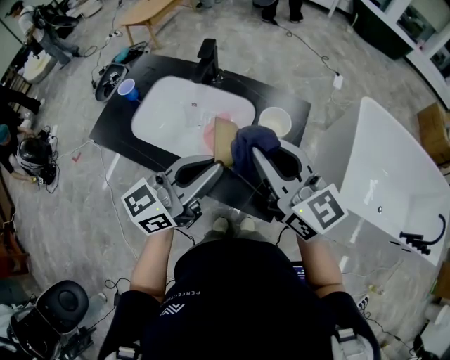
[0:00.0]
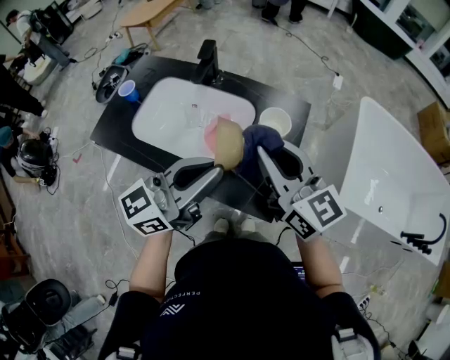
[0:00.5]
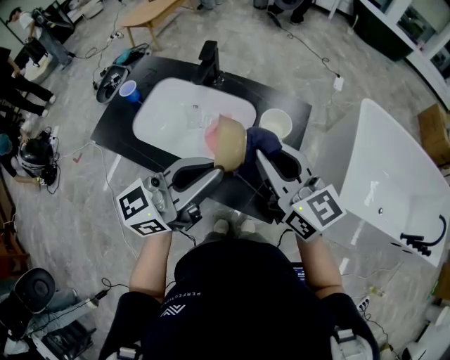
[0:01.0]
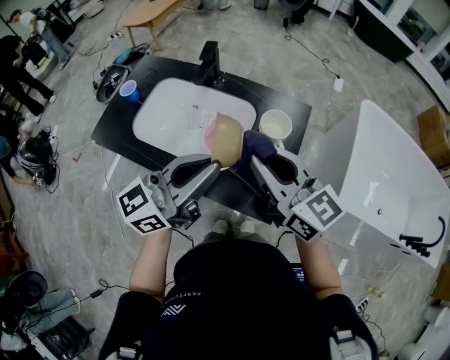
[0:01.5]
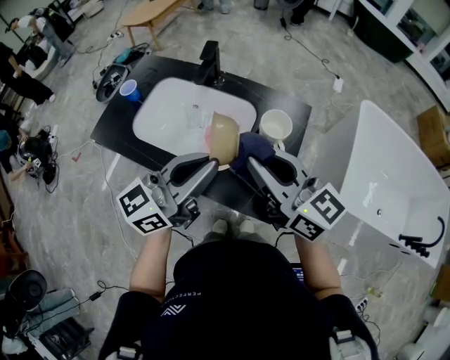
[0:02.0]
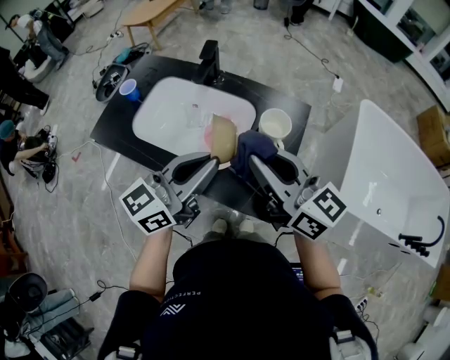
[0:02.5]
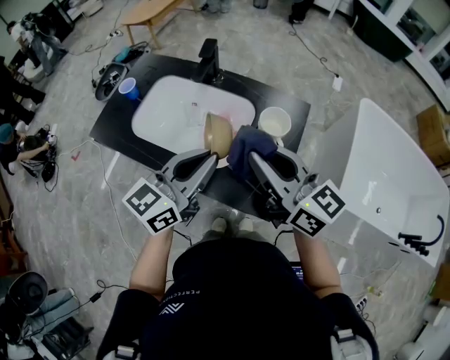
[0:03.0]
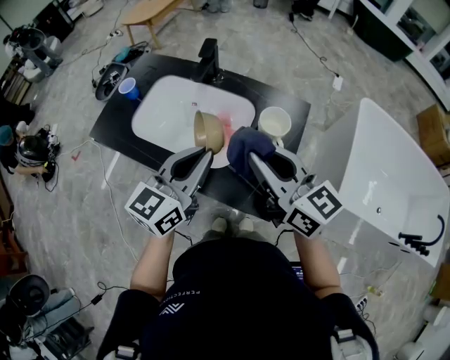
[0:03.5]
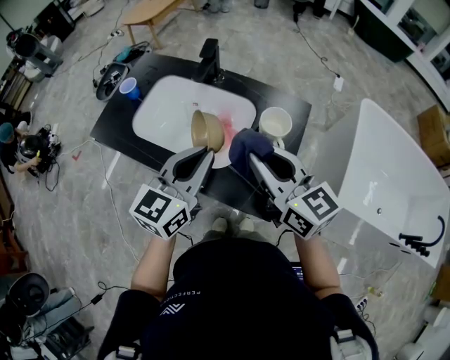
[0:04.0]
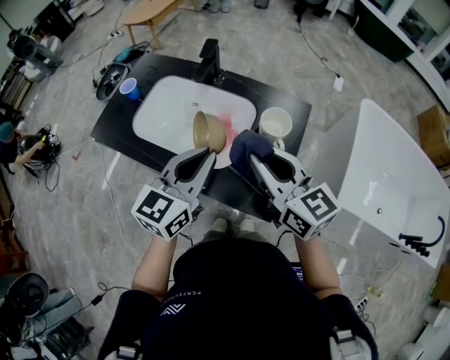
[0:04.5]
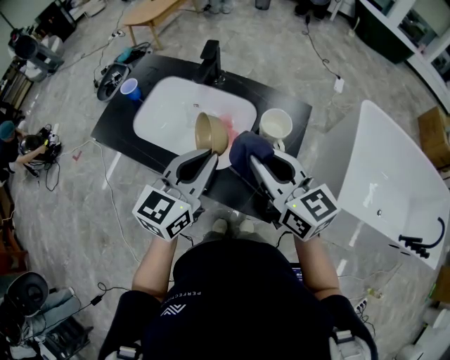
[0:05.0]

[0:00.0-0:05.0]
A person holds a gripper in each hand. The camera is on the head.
0:00.0 to 0:02.5: The grippers stay close to where they were, moving slightly.
0:02.5 to 0:05.0: The left gripper rotates some 20 degrees.

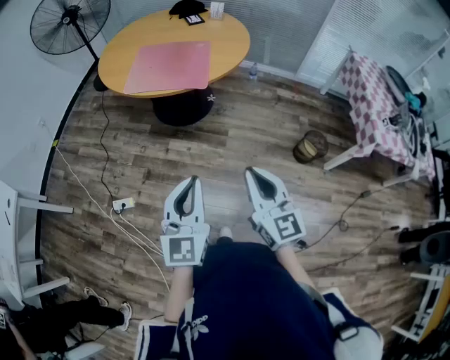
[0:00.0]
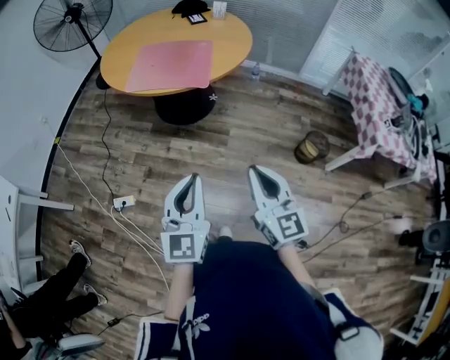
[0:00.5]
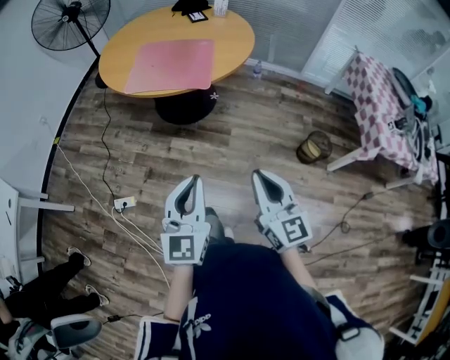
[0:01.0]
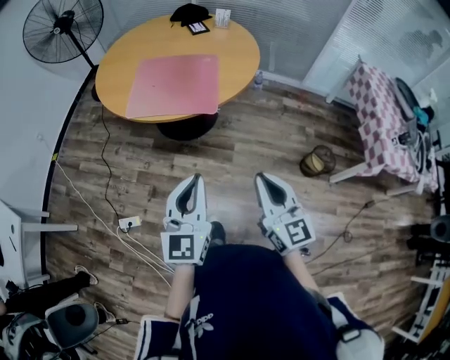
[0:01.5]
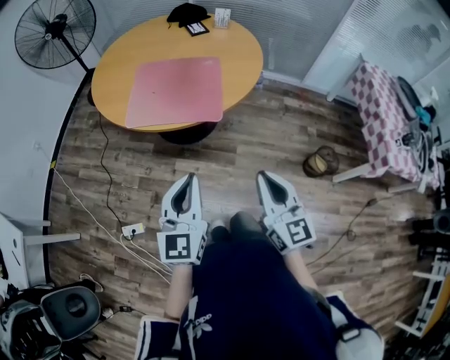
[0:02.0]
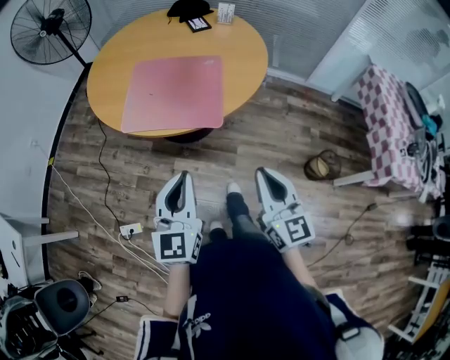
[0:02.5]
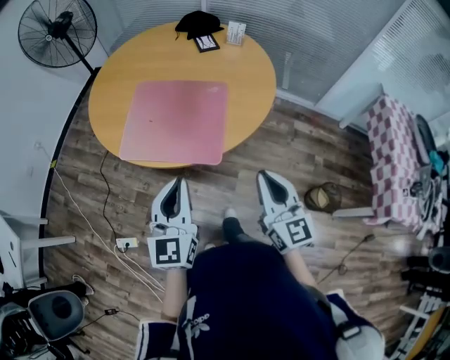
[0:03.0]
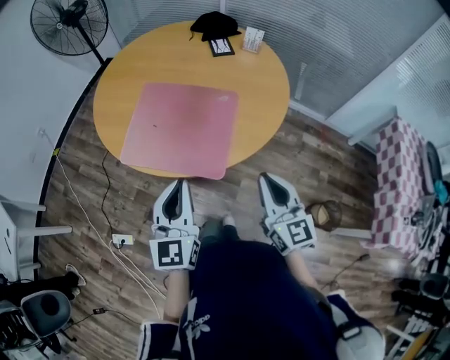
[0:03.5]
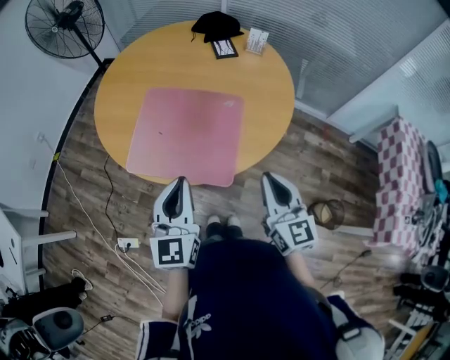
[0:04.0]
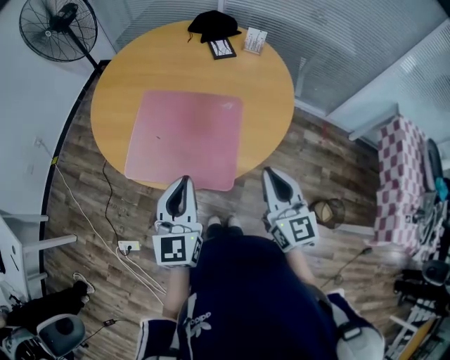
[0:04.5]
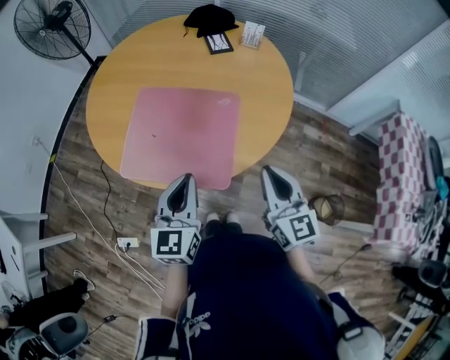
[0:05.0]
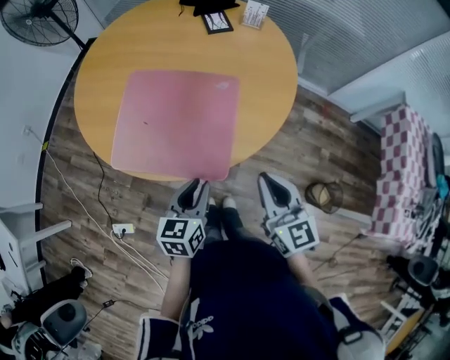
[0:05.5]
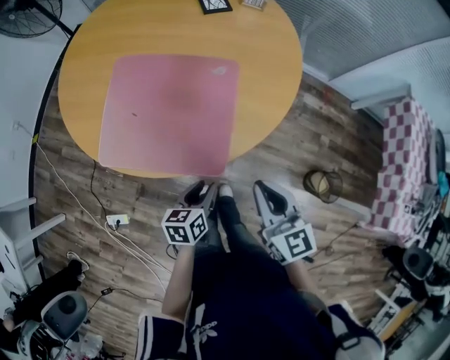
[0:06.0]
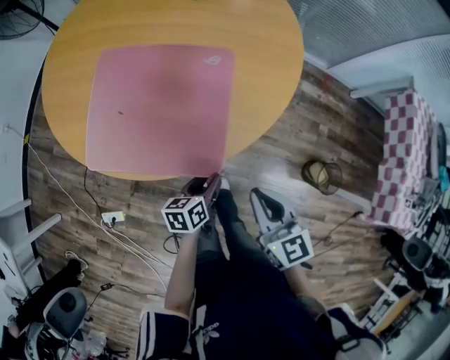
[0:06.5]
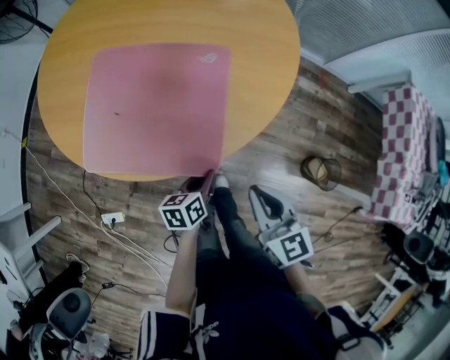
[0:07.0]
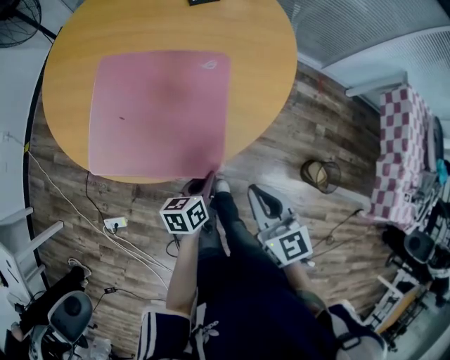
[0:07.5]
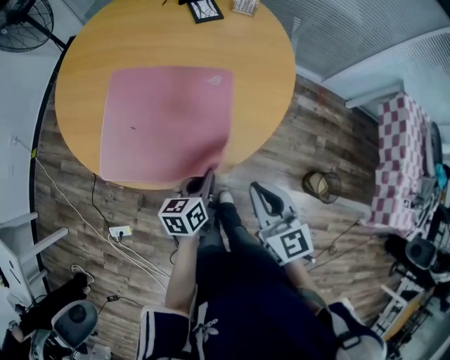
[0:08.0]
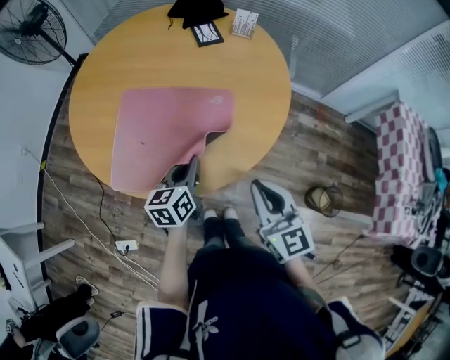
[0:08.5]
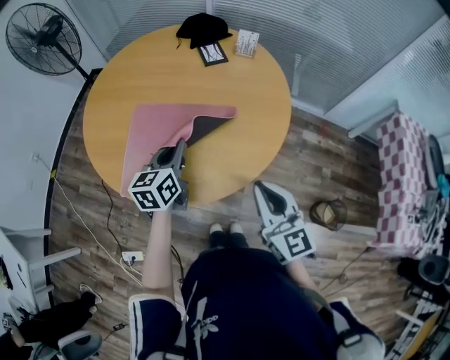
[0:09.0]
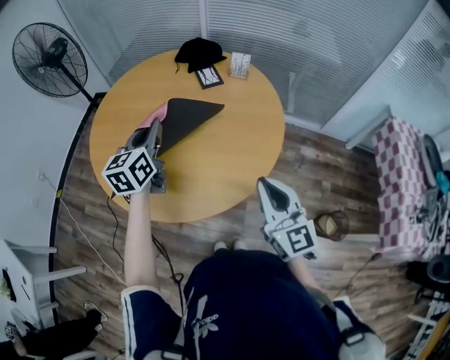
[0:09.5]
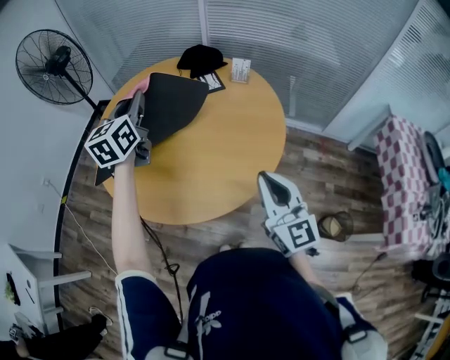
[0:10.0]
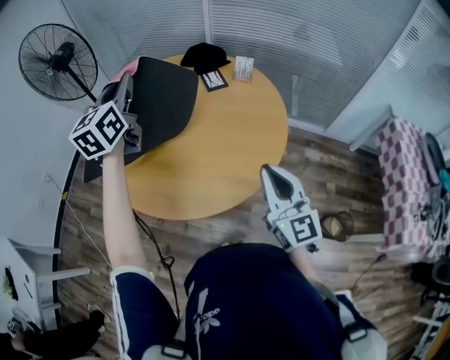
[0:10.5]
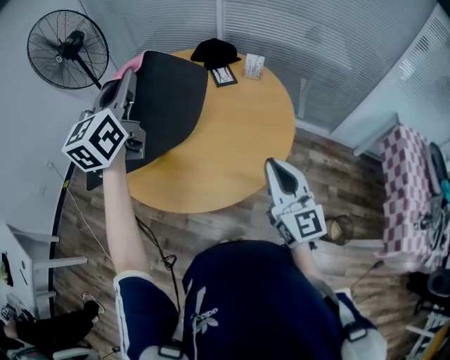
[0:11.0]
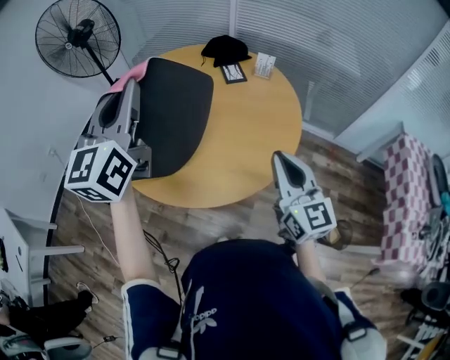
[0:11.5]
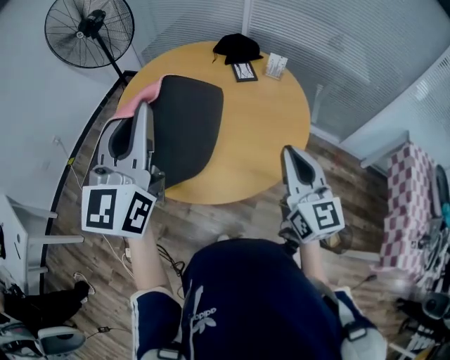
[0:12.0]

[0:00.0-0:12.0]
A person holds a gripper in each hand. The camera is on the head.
0:00.0 to 0:02.0: The two grippers go some 20 cm forward.
0:02.0 to 0:04.0: Both grippers travel together forward, approximately 25 cm.
0:04.0 to 0:06.0: The left gripper shifts about 25 cm downward, tips its fingers downward by about 30 degrees, and opens up, while the right gripper heads downward, covering about 10 cm.
0:06.0 to 0:08.0: The left gripper goes about 5 cm forward, and closes up.
0:08.0 to 0:10.0: The left gripper is displaced upward, forward and to the left by approximately 50 cm, and turns by some 40 degrees; the right gripper goes some 15 cm upward and forward, and rotates roughly 20 degrees.
0:10.0 to 0:12.0: The left gripper moves backward and upward, roughly 25 cm, and rotates approximately 20 degrees.

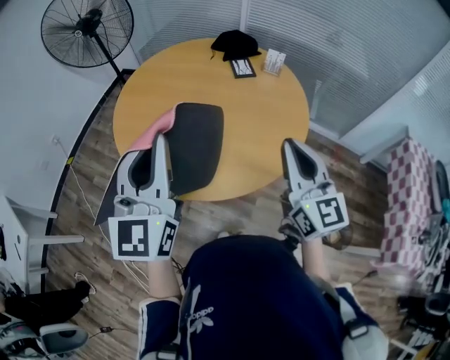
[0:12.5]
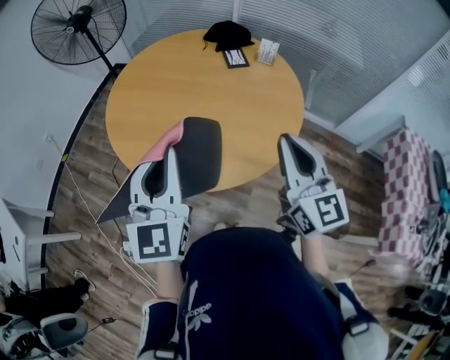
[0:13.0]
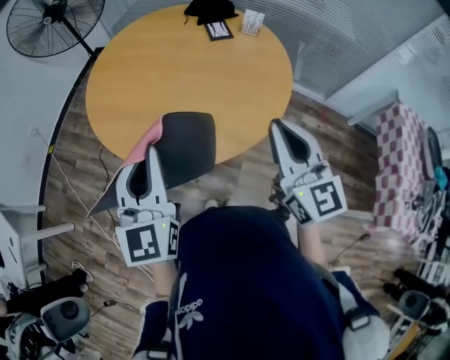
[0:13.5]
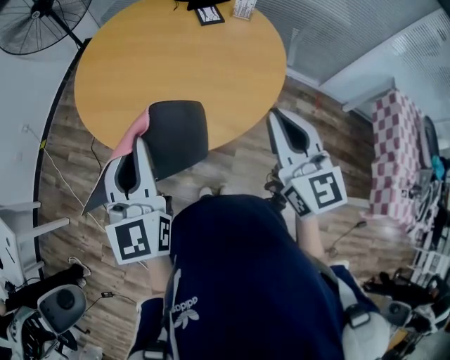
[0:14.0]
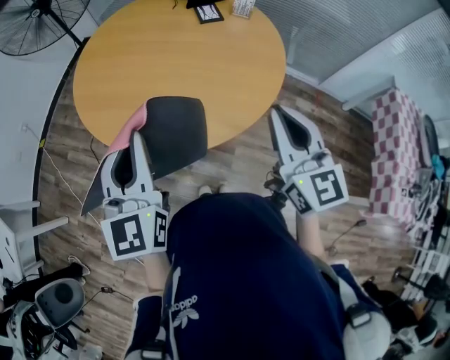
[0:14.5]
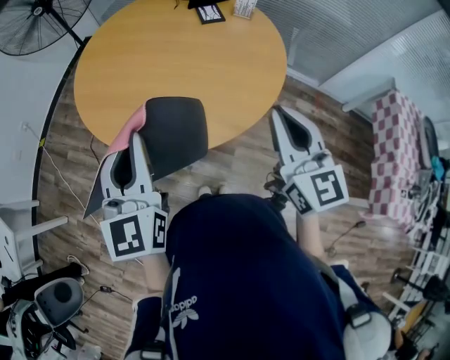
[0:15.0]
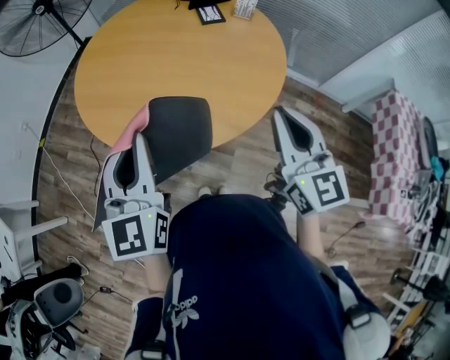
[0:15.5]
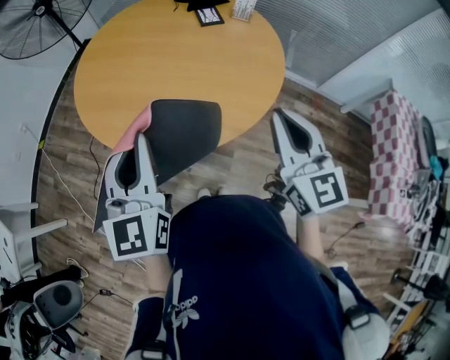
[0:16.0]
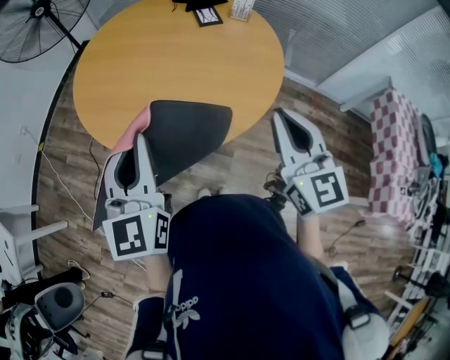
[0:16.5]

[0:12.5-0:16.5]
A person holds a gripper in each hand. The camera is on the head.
0:12.5 to 0:14.5: The left gripper shifts some 10 cm downward and backward, while the right gripper moves backward, approximately 5 cm.
0:14.5 to 0:16.5: Both grippers stay put.

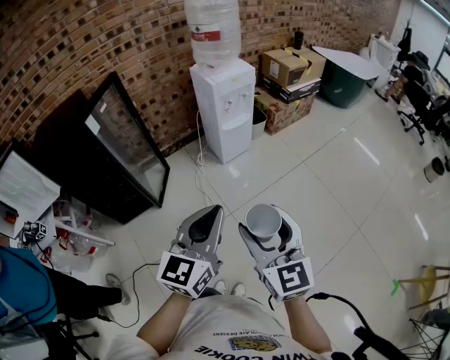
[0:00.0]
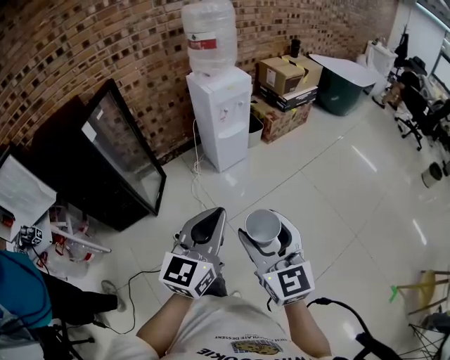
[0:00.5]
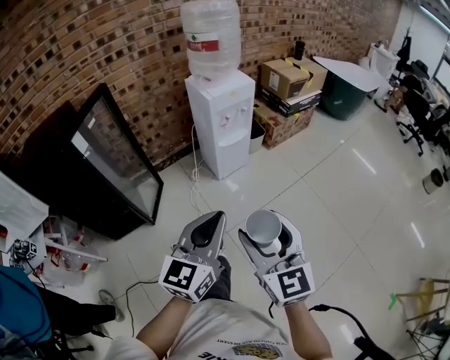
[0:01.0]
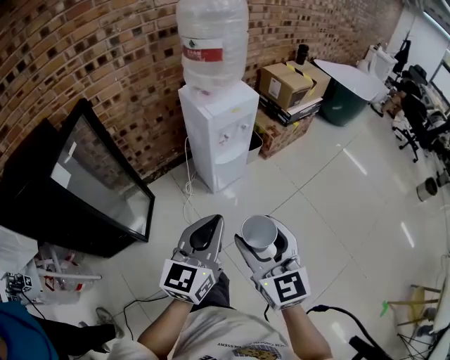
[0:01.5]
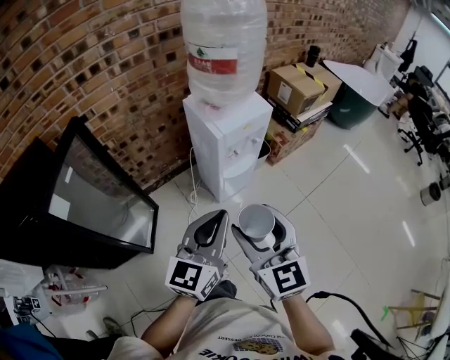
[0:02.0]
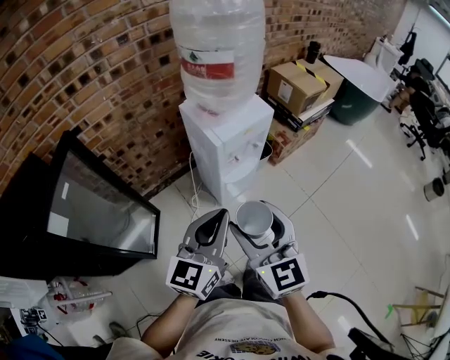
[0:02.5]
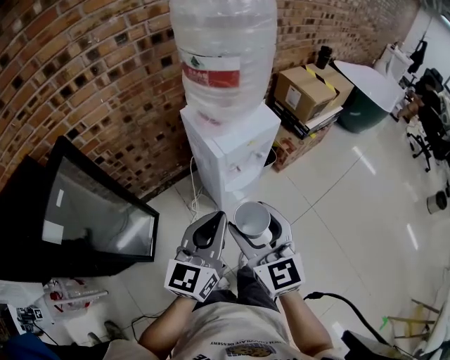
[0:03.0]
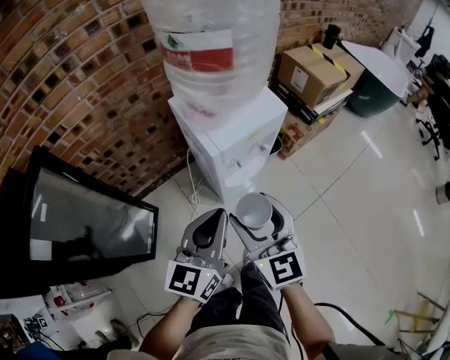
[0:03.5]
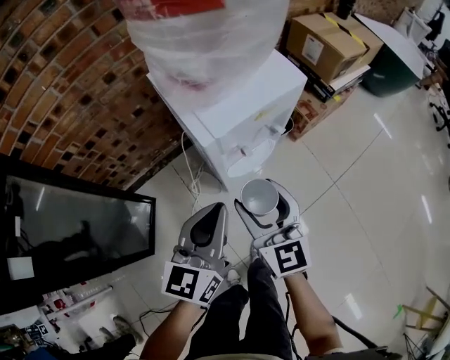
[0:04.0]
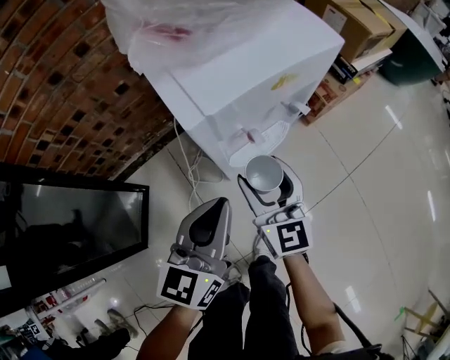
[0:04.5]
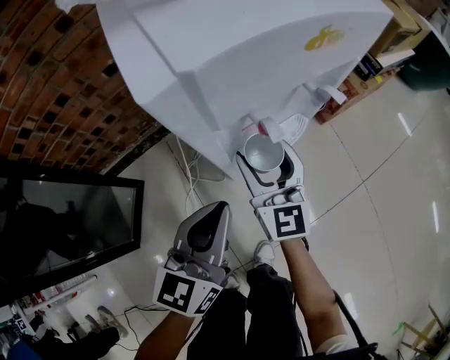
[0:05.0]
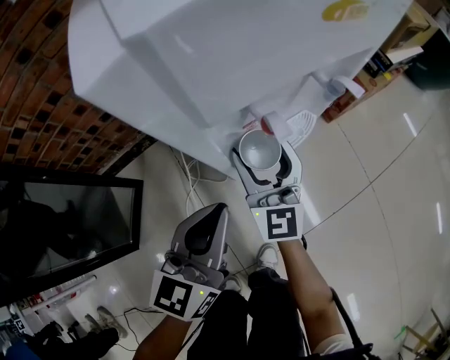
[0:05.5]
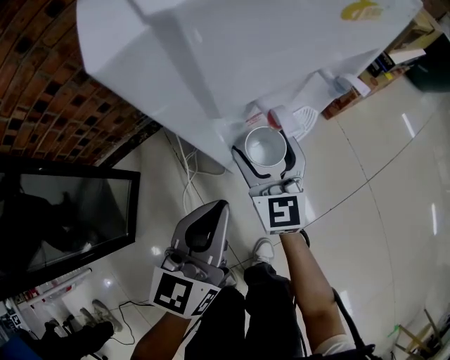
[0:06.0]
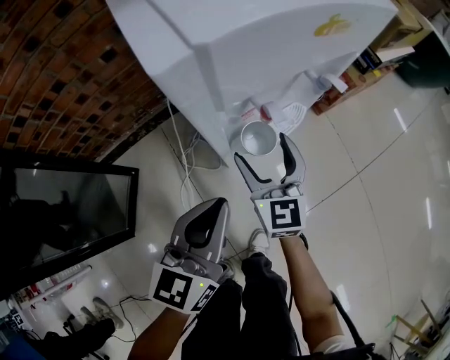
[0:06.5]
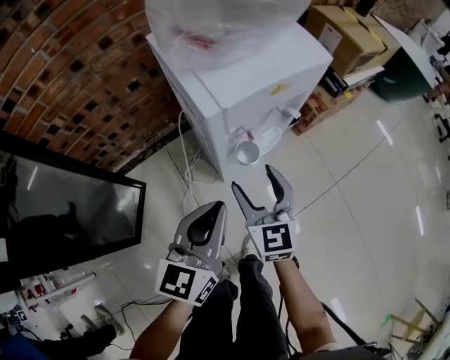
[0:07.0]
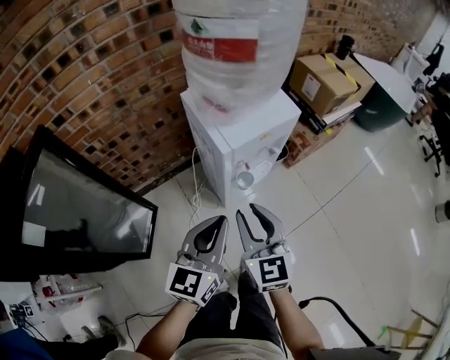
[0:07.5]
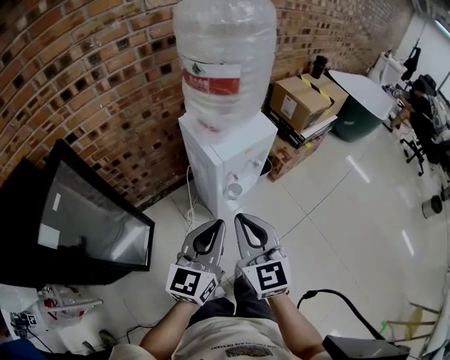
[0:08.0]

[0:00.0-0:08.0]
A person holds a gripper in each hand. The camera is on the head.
0:00.0 to 0:02.0: Both grippers travel together forward, roughly 35 cm.
0:02.0 to 0:04.0: The two grippers go some 30 cm forward and downward.
0:04.0 to 0:06.0: The right gripper moves downward and forward, roughly 30 cm. The left gripper is displaced downward by some 20 cm.
0:06.0 to 0:08.0: The left gripper goes roughly 35 cm upward. The right gripper heads upward and backward, covering some 50 cm, and closes its fingers.
